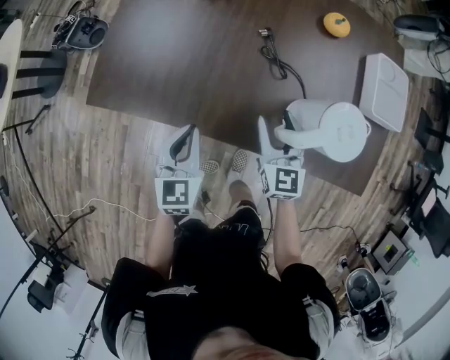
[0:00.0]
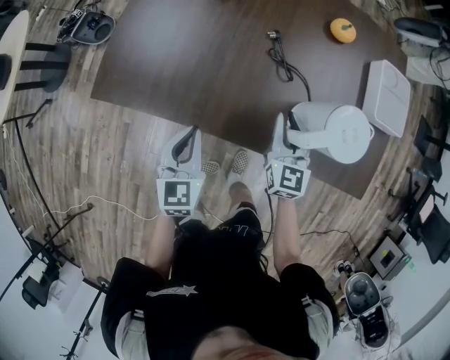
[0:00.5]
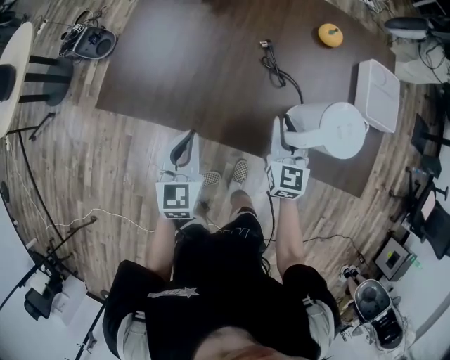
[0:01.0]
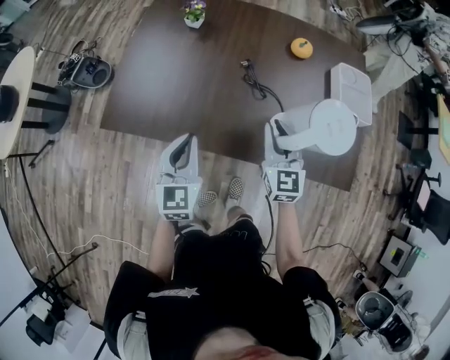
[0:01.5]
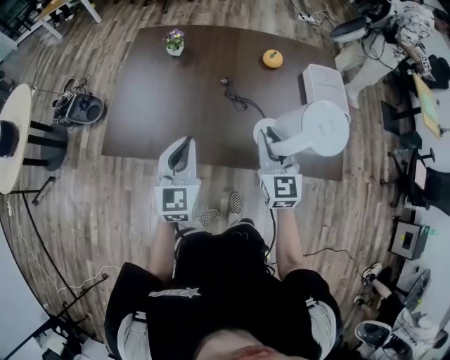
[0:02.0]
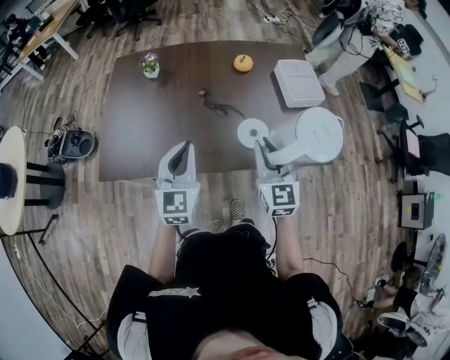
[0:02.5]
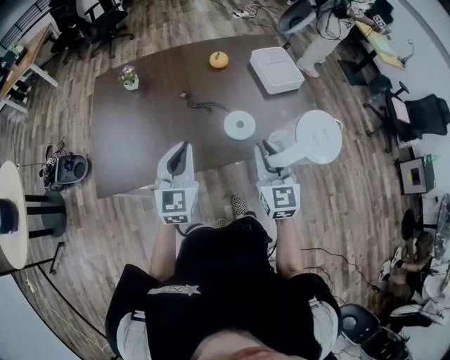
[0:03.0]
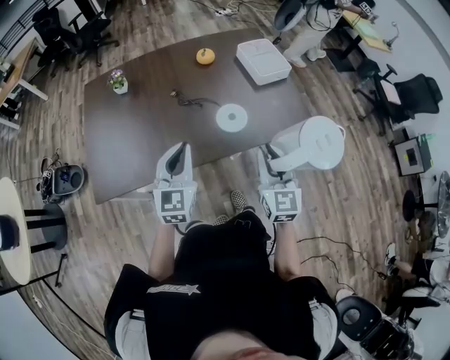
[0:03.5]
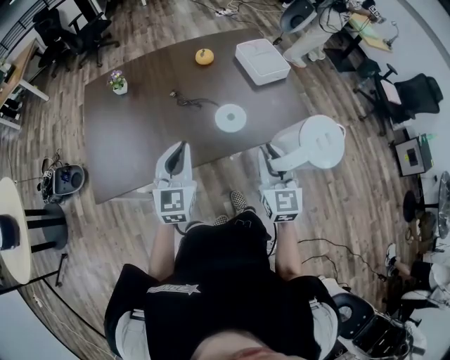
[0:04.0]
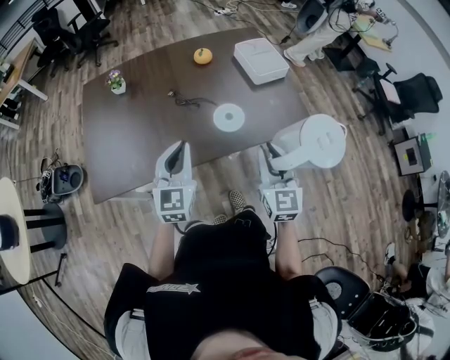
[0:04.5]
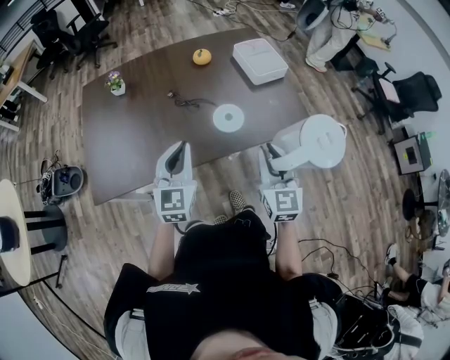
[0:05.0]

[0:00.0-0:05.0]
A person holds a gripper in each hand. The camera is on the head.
0:00.0 to 0:02.5: The left gripper shifts some 20 cm upward, and swivels approximately 30 degrees. The right gripper heads upward and backward, covering roughly 25 cm, and closes up.
0:02.5 to 0:05.0: The left gripper is displaced to the right by some 5 cm. Meanwhile the right gripper heads backward and to the right, covering some 15 cm.

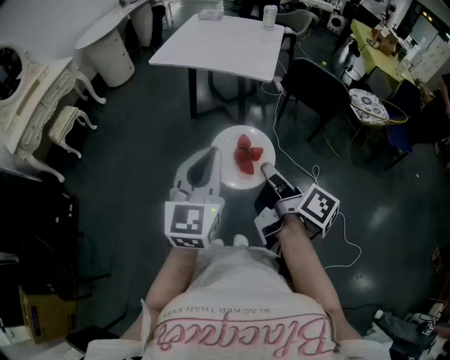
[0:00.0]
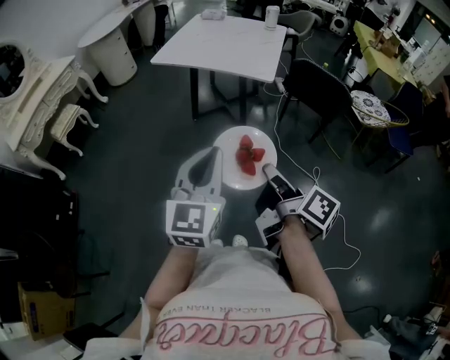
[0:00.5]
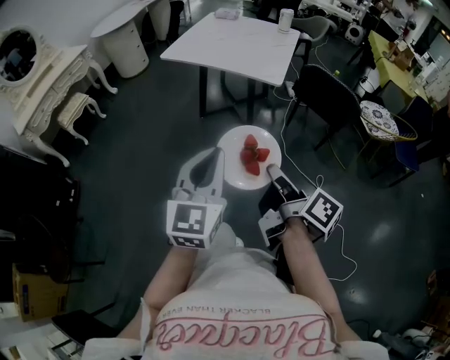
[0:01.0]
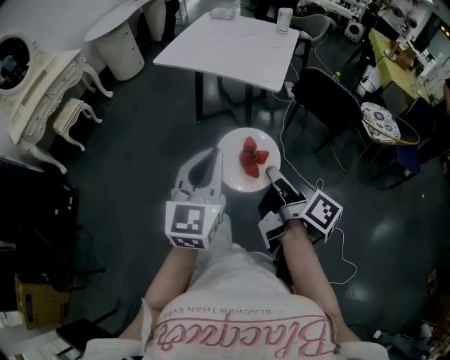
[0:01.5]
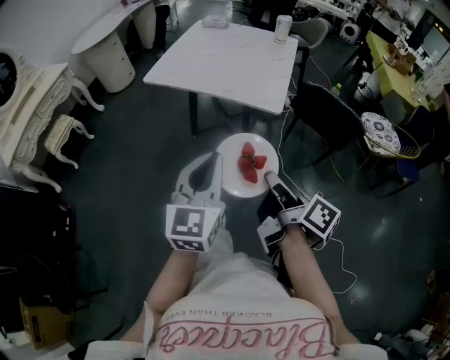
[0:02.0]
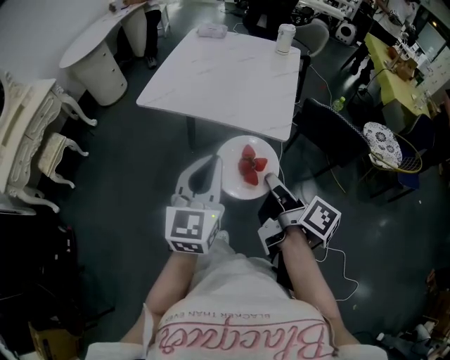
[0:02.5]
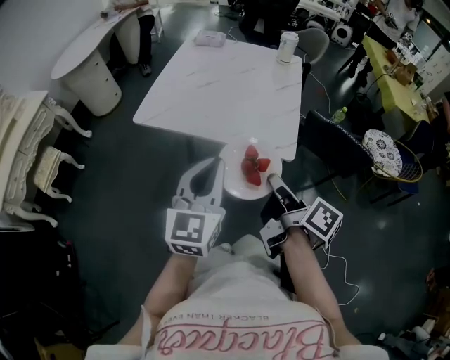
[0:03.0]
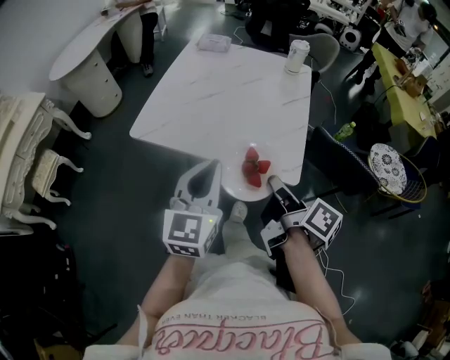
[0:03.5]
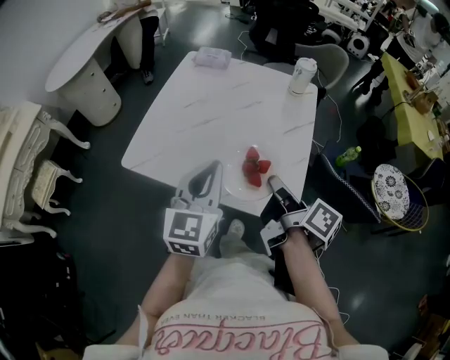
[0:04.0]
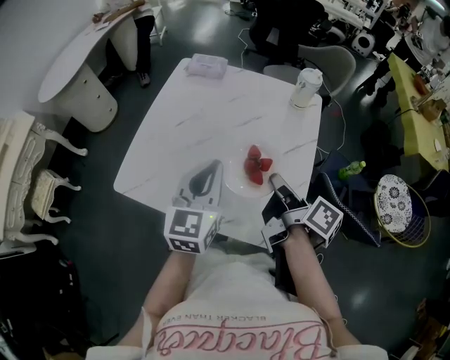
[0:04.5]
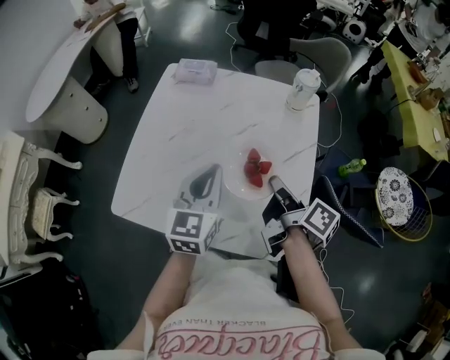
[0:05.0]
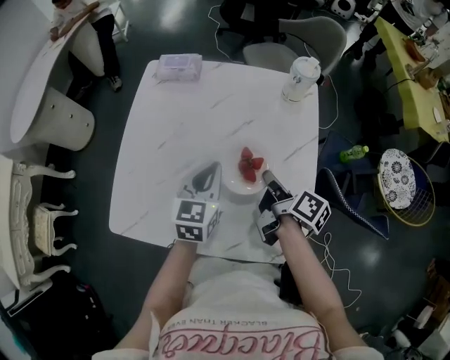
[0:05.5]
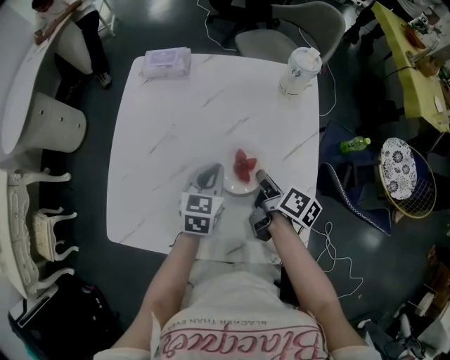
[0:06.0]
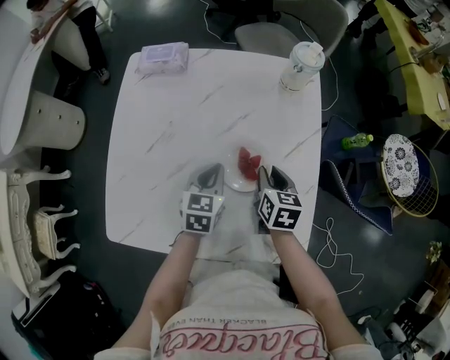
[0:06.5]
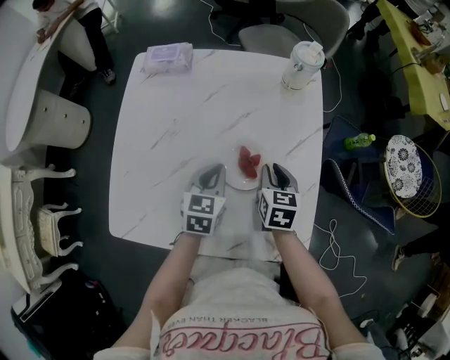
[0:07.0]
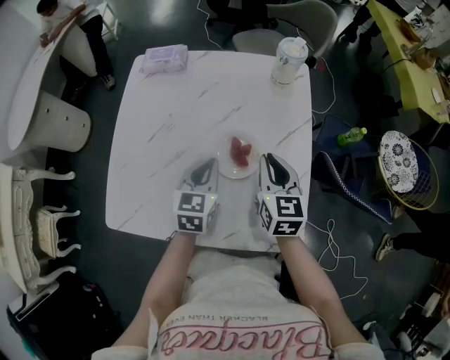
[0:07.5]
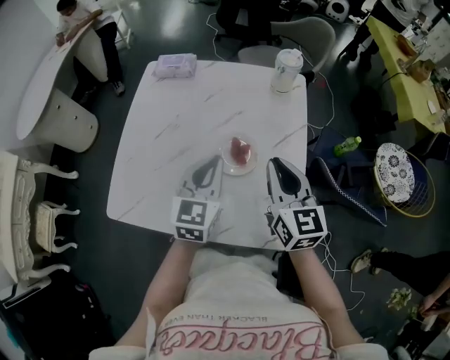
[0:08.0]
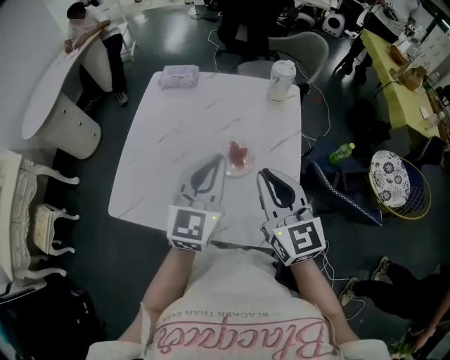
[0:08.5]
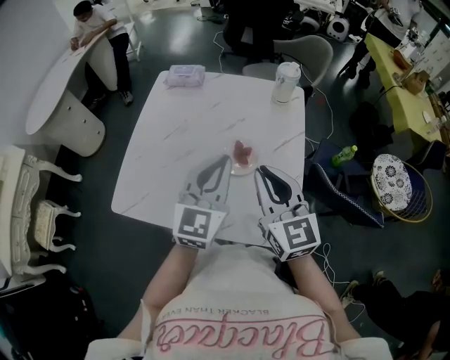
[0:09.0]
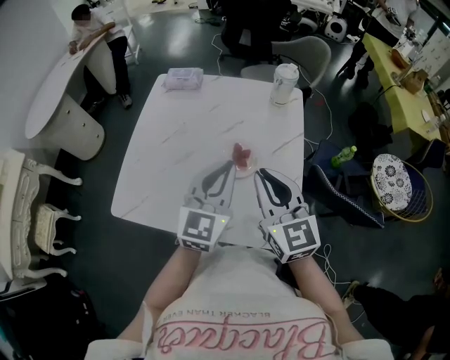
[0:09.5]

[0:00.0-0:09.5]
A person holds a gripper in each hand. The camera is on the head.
0:00.0 to 0:02.0: The two grippers go roughly 20 cm forward.
0:02.0 to 0:04.0: The two grippers travel together, forward, about 50 cm.
0:04.0 to 0:05.5: Both grippers travel together forward and downward, roughly 30 cm. The left gripper swivels approximately 20 degrees.
0:05.5 to 0:07.5: The right gripper reaches approximately 10 cm downward, then returns, and rotates around the line of its fingers by roughly 60 degrees, counterclockwise from behind.
0:07.5 to 0:09.5: The two grippers go approximately 20 cm upward and backward. The left gripper rotates some 30 degrees; the right gripper changes its angle by roughly 30 degrees.

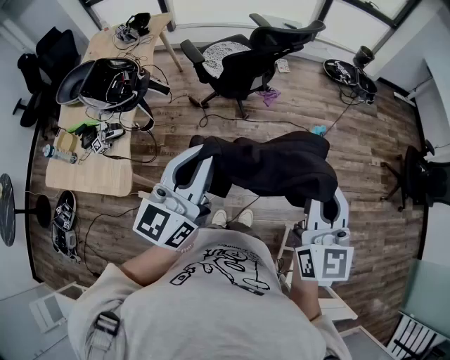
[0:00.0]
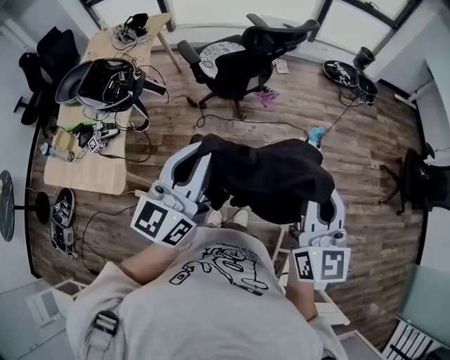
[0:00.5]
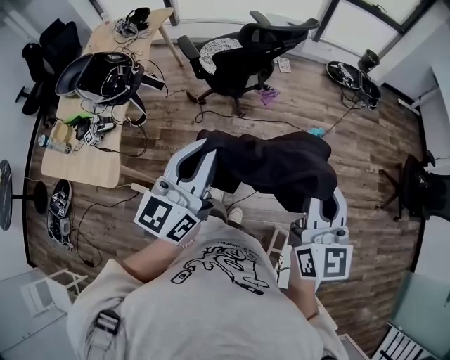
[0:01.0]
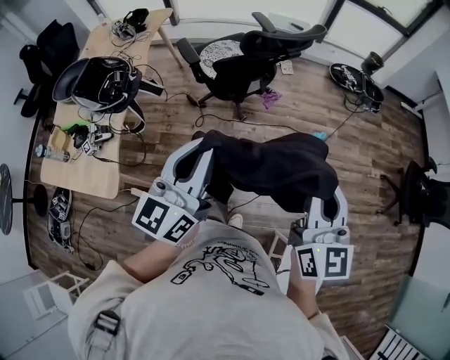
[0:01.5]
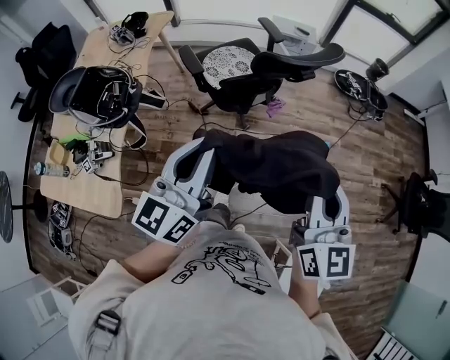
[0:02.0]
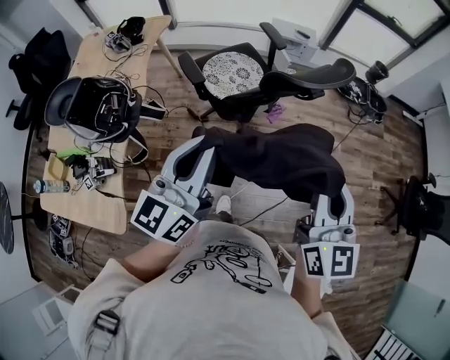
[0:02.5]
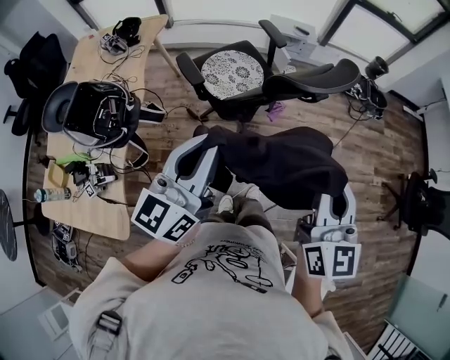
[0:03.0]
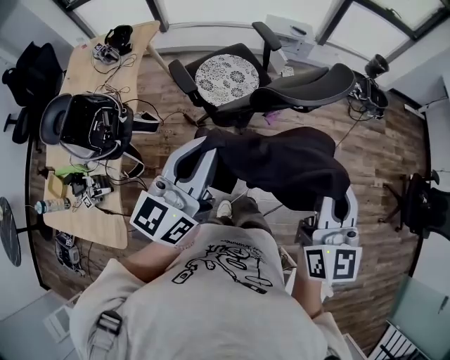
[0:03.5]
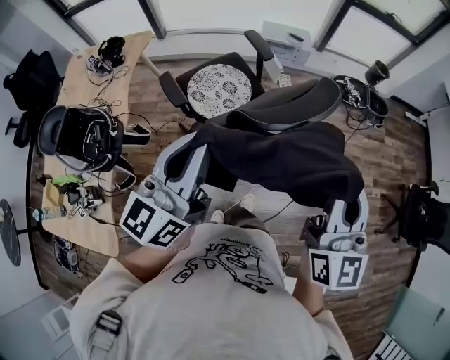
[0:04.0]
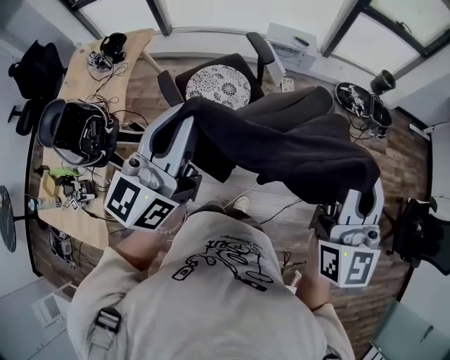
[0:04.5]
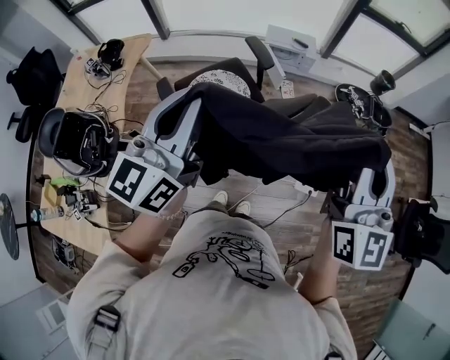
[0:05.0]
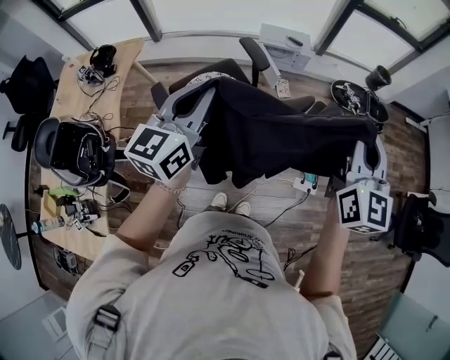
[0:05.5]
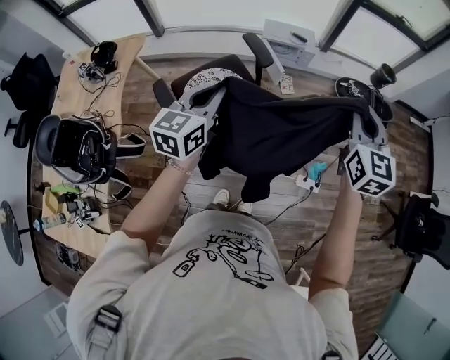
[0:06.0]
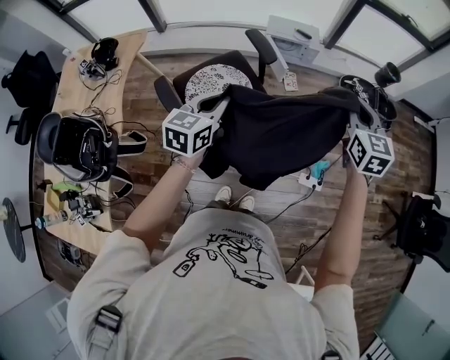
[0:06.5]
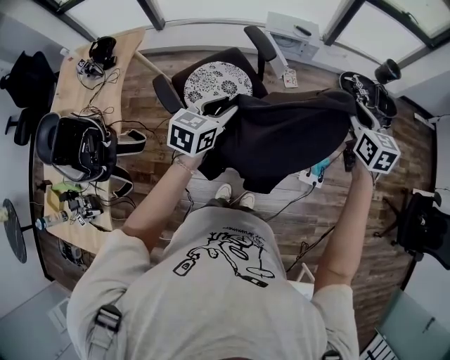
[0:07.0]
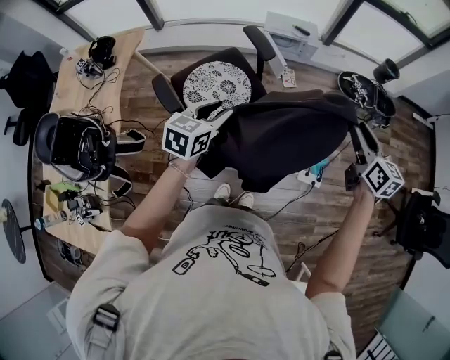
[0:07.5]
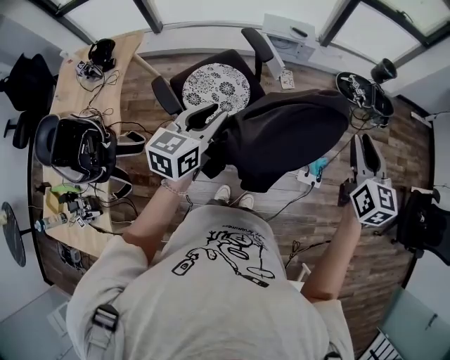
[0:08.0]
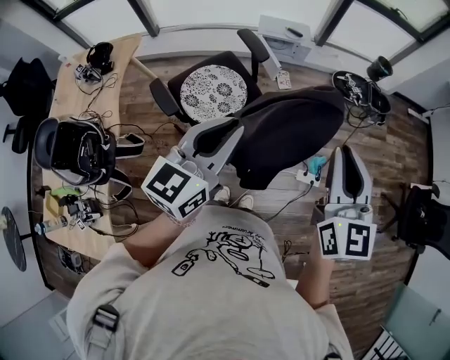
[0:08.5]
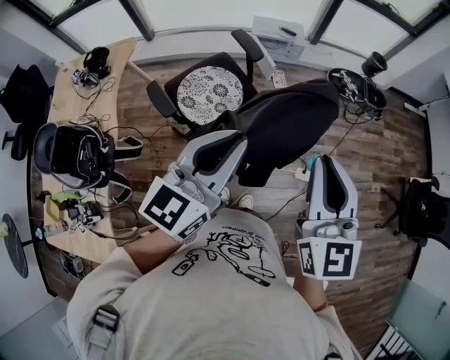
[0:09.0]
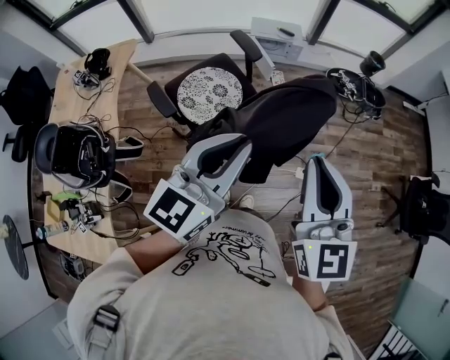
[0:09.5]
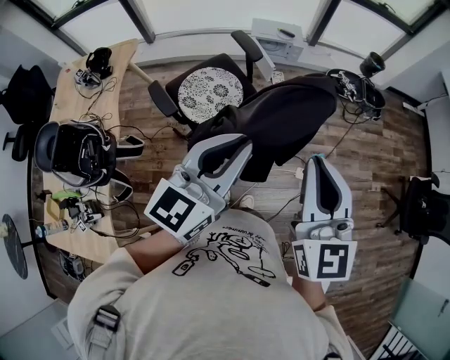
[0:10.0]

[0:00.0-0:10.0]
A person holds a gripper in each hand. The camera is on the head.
0:00.0 to 0:02.0: Both grippers travel together forward, roughly 20 cm.
0:02.0 to 0:04.0: Both grippers move forward, some 20 cm.
0:04.0 to 0:06.0: The left gripper moves forward and downward, some 30 cm, and turns by roughly 20 degrees. Meanwhile the right gripper travels forward by roughly 30 cm.
0:06.0 to 0:08.0: The right gripper travels backward, downward and to the right by roughly 10 cm, and opens its fingers. Meanwhile the left gripper moves backward, about 5 cm, reaches some 10 cm downward, then returns, and opens.
0:08.0 to 0:10.0: The left gripper heads upward, backward and to the right, covering about 20 cm, and changes its angle by some 20 degrees. The right gripper shifts some 25 cm backward, upward and to the left, and closes.

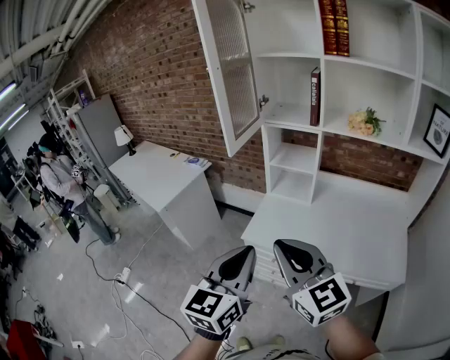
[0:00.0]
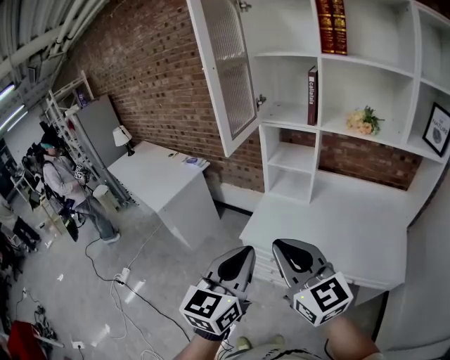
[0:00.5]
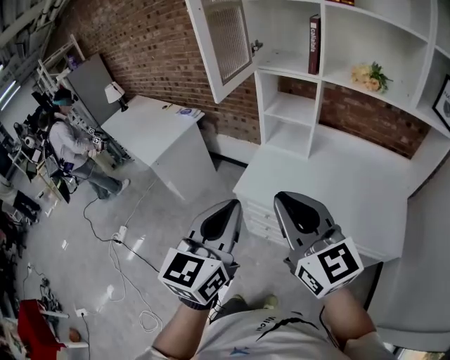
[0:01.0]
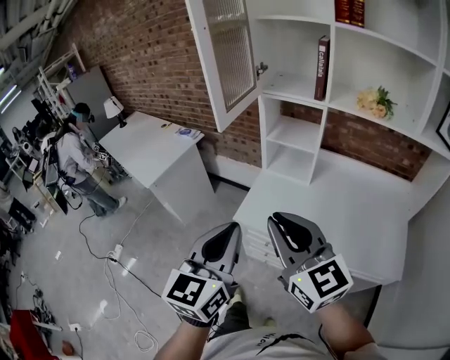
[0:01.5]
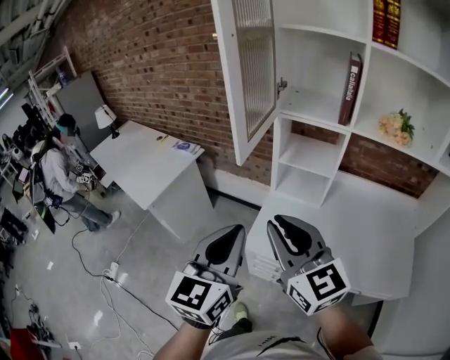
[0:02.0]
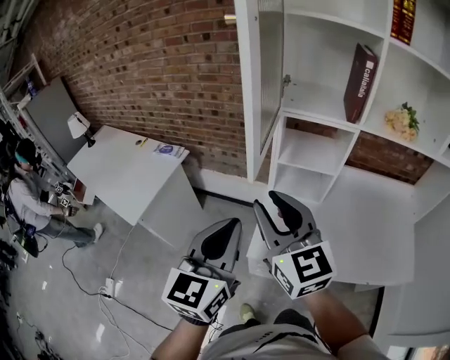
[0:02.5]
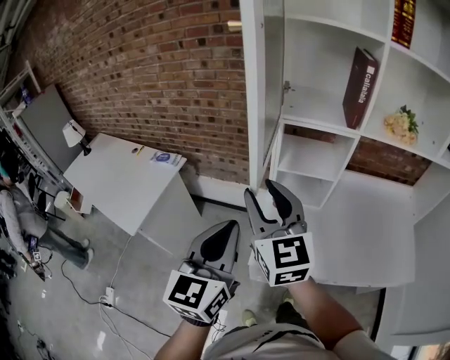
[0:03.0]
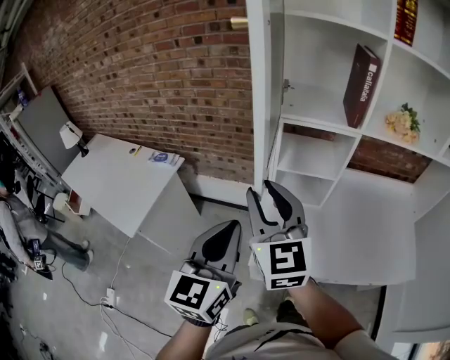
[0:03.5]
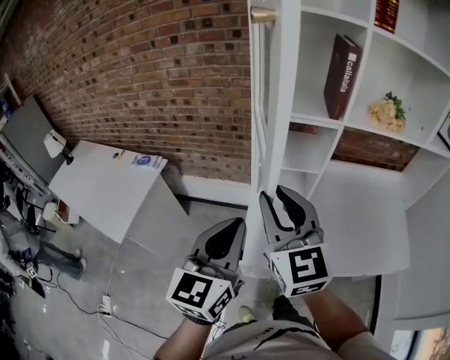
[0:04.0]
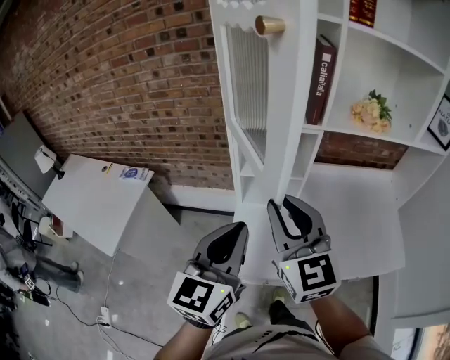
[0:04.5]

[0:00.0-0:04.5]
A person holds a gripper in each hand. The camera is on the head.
0:00.0 to 0:02.0: Both grippers move forward, about 20 cm.
0:02.0 to 0:04.5: Both grippers travel together forward, roughly 15 cm. The right gripper swivels some 30 degrees.
